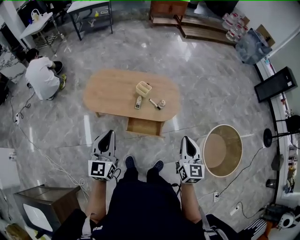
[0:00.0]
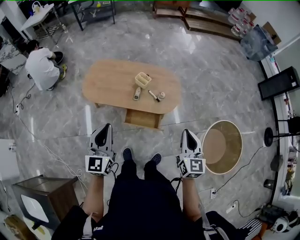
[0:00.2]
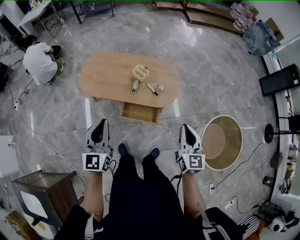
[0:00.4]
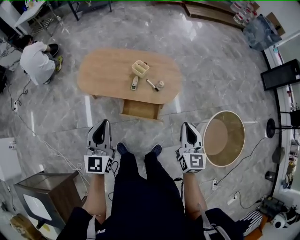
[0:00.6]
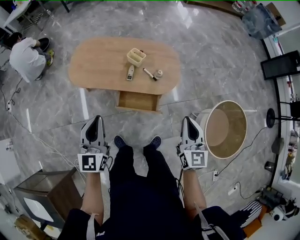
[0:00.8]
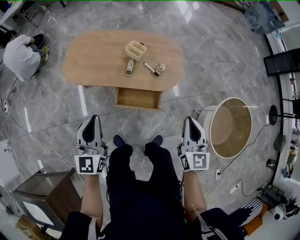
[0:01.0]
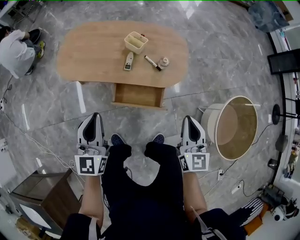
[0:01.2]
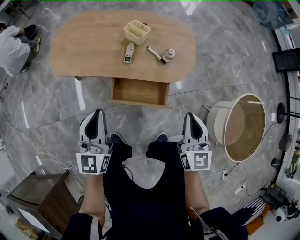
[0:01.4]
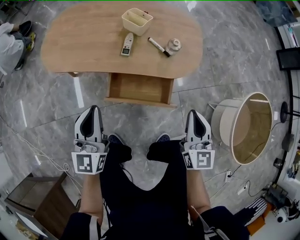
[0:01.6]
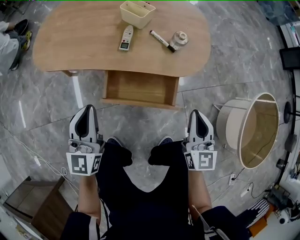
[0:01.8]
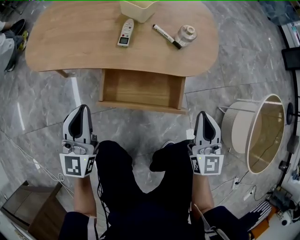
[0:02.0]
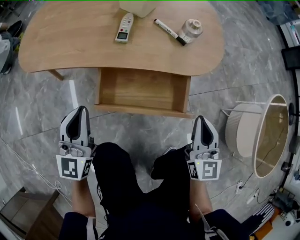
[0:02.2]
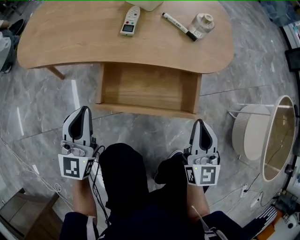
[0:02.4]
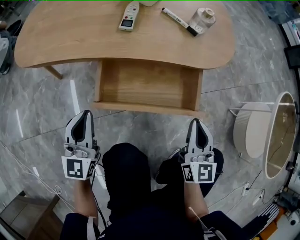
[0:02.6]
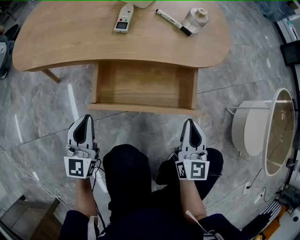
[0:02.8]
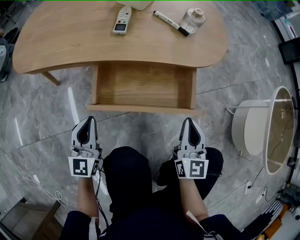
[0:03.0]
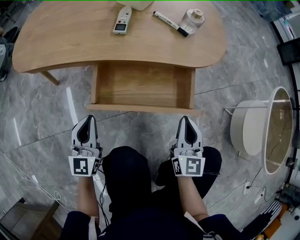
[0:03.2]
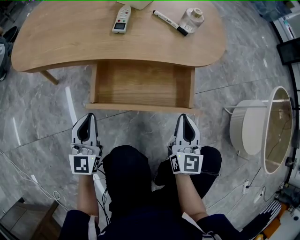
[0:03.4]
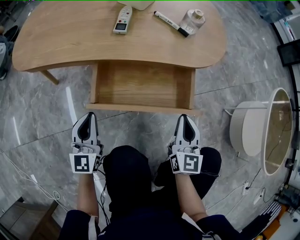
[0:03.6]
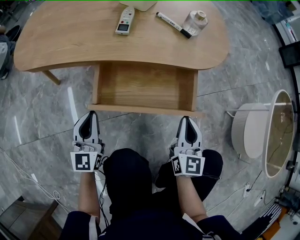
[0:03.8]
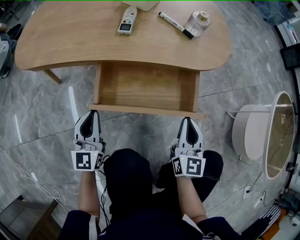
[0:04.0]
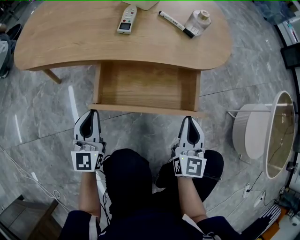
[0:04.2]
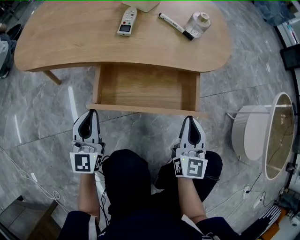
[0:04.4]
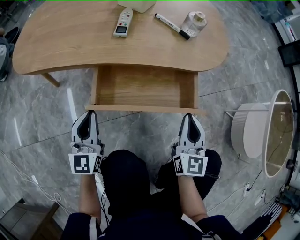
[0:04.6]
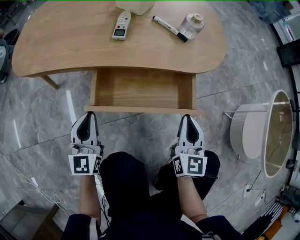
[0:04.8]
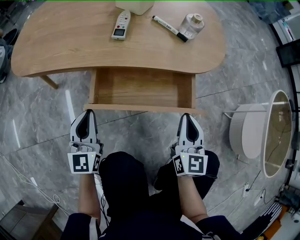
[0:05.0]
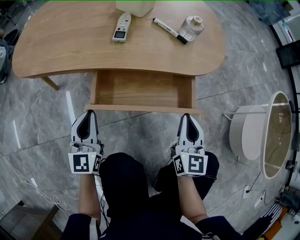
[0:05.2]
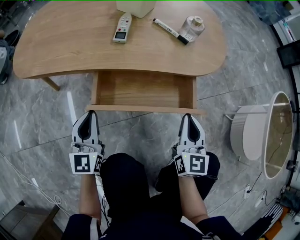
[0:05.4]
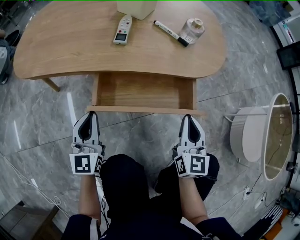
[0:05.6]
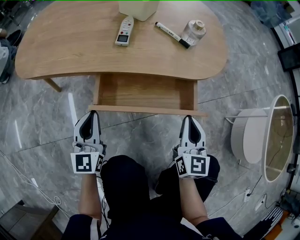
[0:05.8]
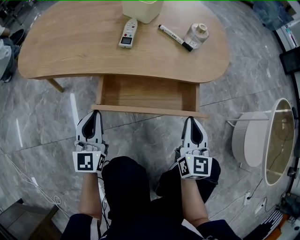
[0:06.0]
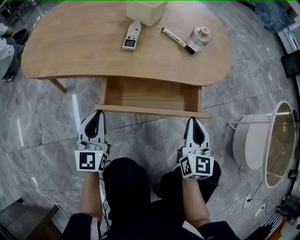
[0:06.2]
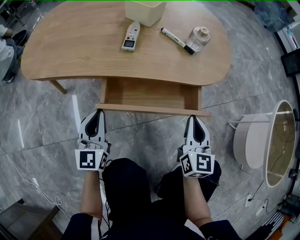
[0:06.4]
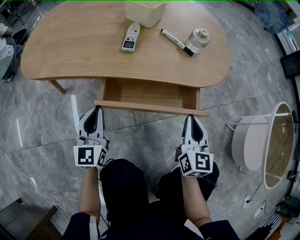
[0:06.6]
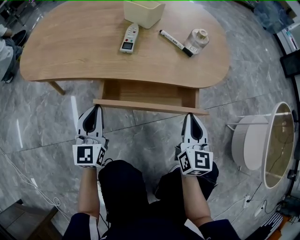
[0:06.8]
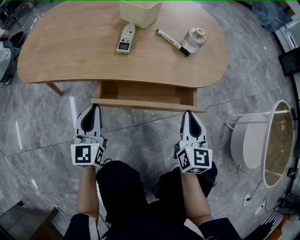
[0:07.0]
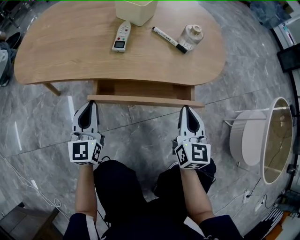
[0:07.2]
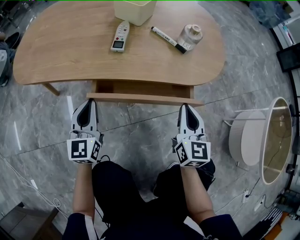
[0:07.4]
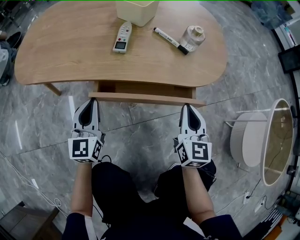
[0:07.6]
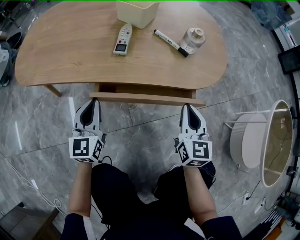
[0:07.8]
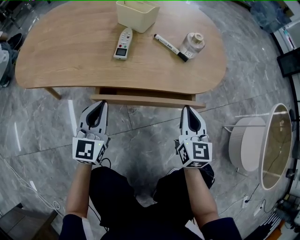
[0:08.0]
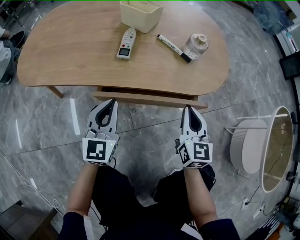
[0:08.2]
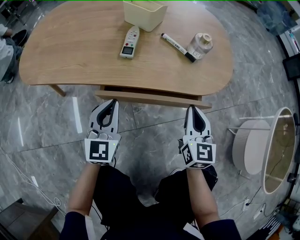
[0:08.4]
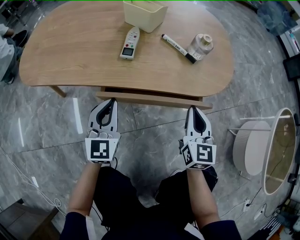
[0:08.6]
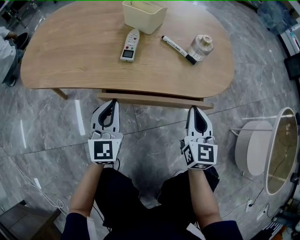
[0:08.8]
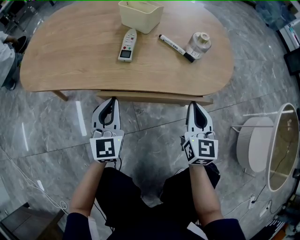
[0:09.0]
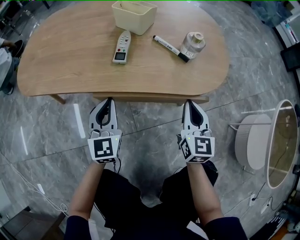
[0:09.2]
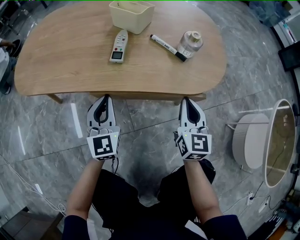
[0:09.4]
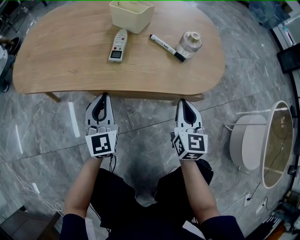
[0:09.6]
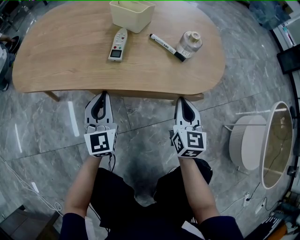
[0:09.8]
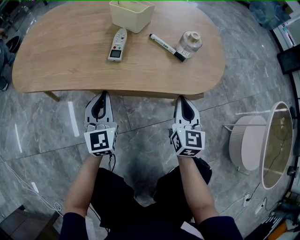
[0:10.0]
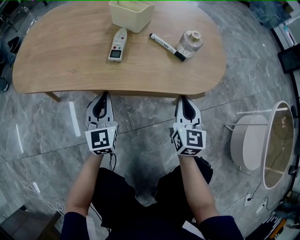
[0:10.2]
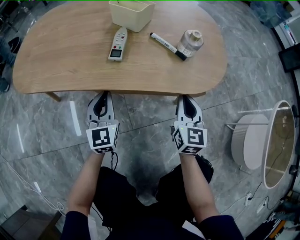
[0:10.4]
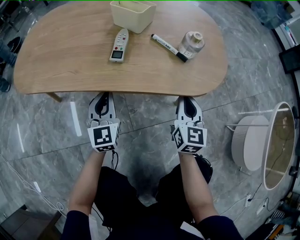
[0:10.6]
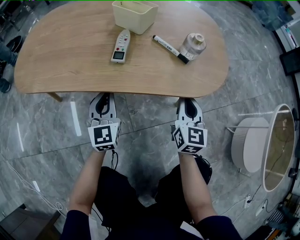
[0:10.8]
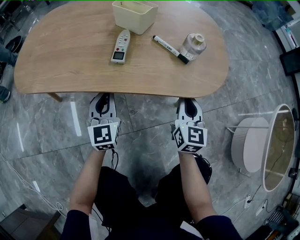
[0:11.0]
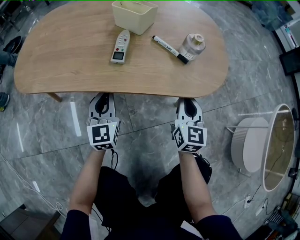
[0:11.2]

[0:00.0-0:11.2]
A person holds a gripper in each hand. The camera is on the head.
0:00.0 to 0:01.6: Both grippers move downward, roughly 40 cm.
0:01.6 to 0:03.2: The grippers both shift downward by roughly 30 cm.
0:03.2 to 0:04.8: There are only small adjustments of the grippers.
0:04.8 to 0:06.4: The grippers make only small movements.
0:06.4 to 0:08.0: The grippers both shift forward by approximately 5 cm.
0:08.0 to 0:09.6: The grippers move only a little.
0:09.6 to 0:11.2: There are only small adjustments of the grippers.

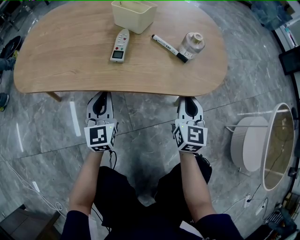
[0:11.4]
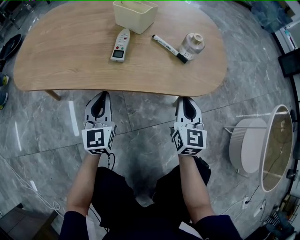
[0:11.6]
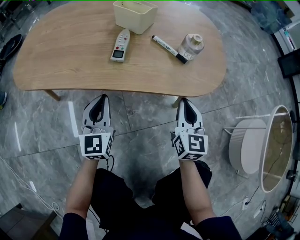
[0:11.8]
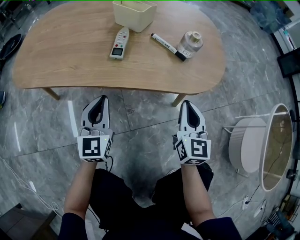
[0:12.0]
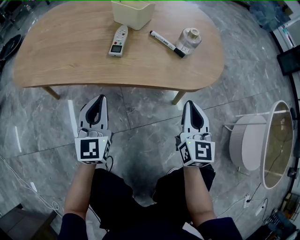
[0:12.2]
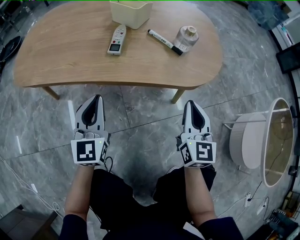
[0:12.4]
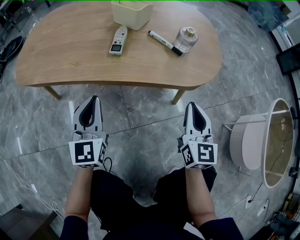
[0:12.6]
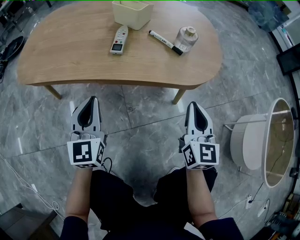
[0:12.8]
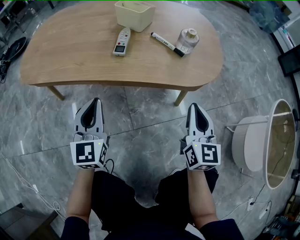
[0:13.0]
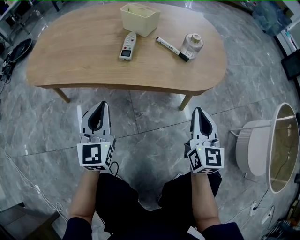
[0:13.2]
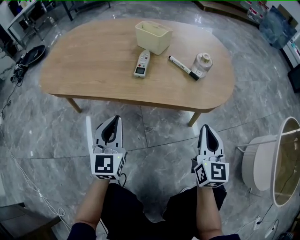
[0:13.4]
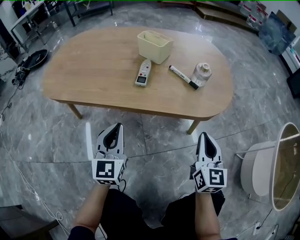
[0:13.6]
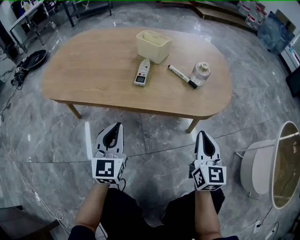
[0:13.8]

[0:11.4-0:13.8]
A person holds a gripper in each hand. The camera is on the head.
0:11.4 to 0:12.6: The grippers both shift backward and upward by about 10 cm.
0:12.6 to 0:13.8: The two grippers keep their place.

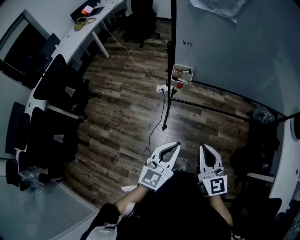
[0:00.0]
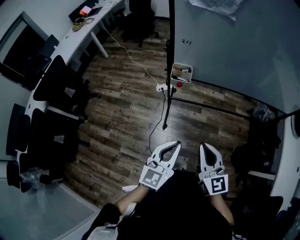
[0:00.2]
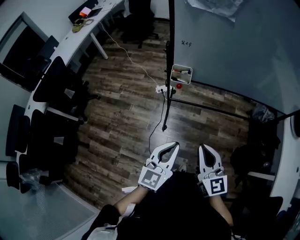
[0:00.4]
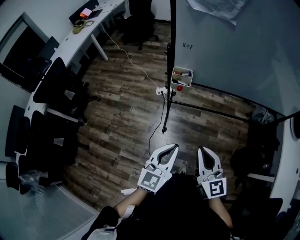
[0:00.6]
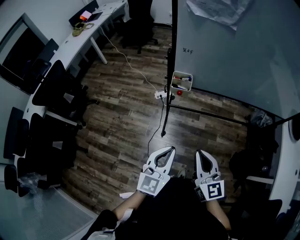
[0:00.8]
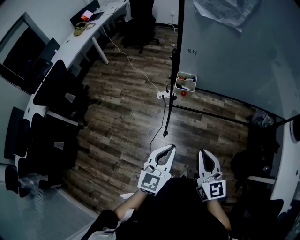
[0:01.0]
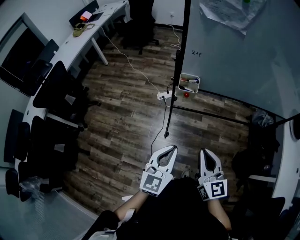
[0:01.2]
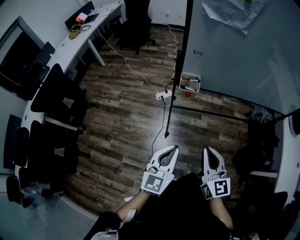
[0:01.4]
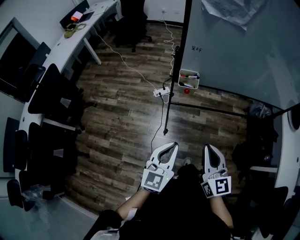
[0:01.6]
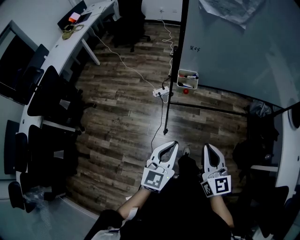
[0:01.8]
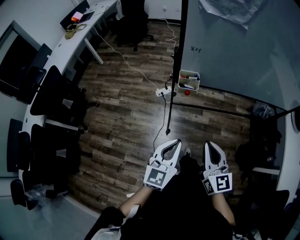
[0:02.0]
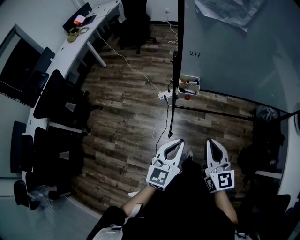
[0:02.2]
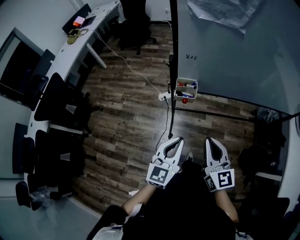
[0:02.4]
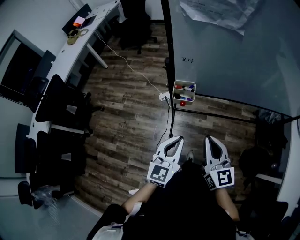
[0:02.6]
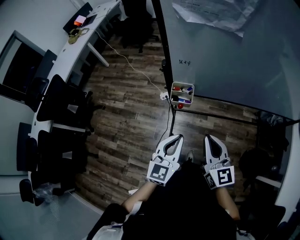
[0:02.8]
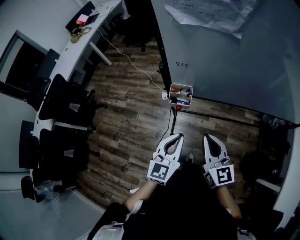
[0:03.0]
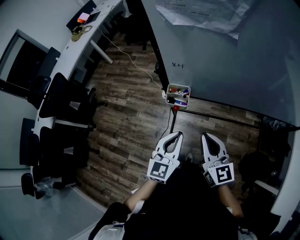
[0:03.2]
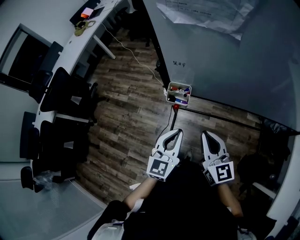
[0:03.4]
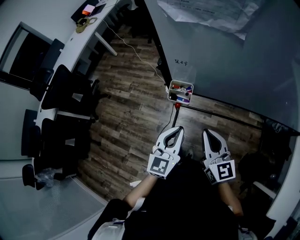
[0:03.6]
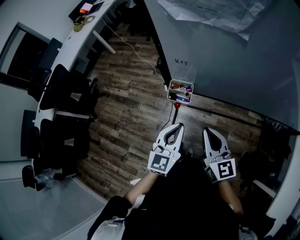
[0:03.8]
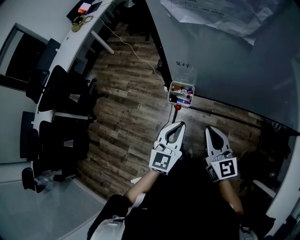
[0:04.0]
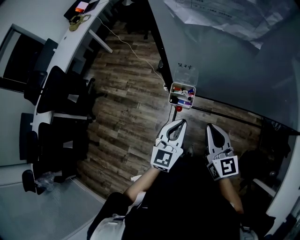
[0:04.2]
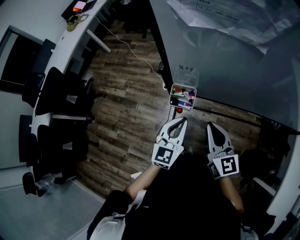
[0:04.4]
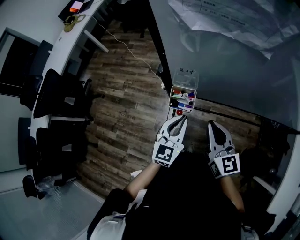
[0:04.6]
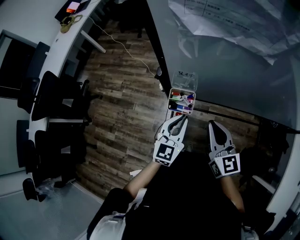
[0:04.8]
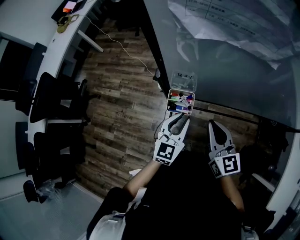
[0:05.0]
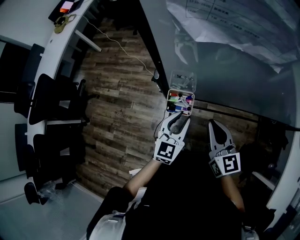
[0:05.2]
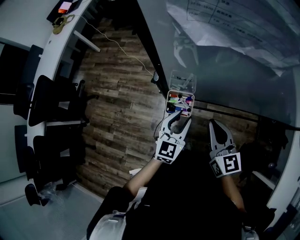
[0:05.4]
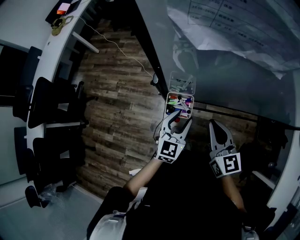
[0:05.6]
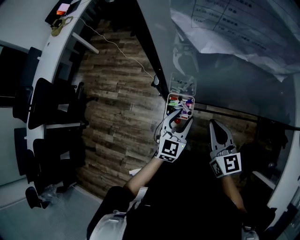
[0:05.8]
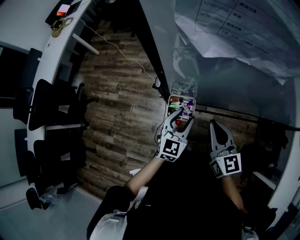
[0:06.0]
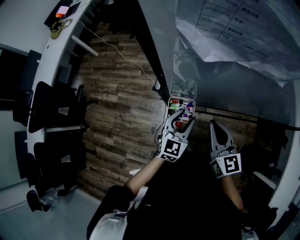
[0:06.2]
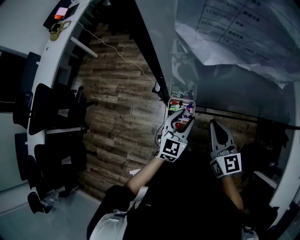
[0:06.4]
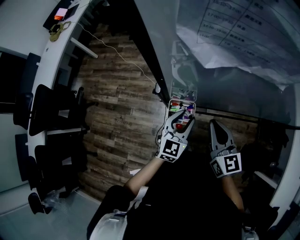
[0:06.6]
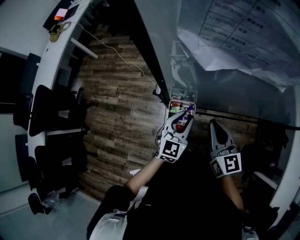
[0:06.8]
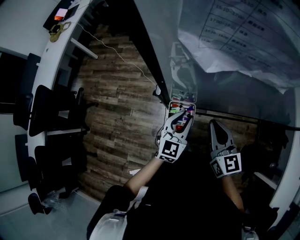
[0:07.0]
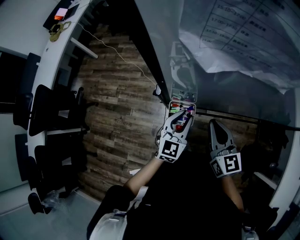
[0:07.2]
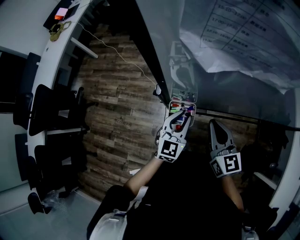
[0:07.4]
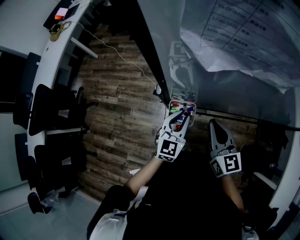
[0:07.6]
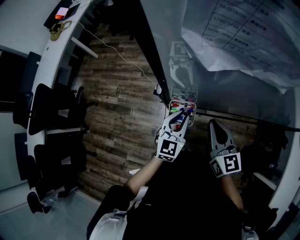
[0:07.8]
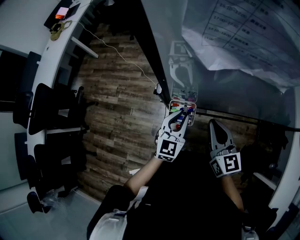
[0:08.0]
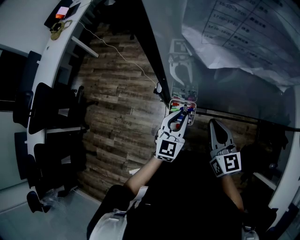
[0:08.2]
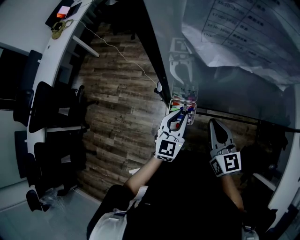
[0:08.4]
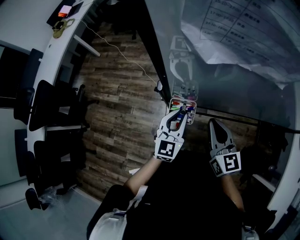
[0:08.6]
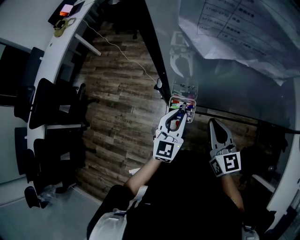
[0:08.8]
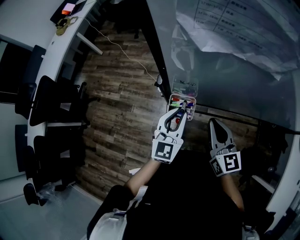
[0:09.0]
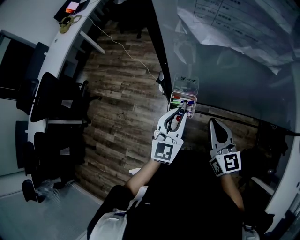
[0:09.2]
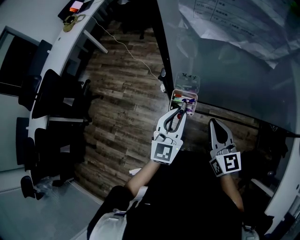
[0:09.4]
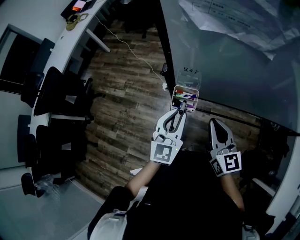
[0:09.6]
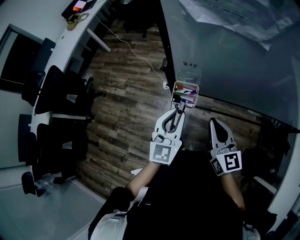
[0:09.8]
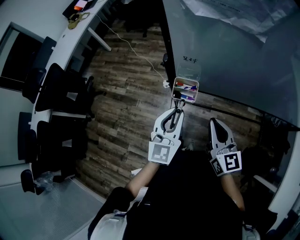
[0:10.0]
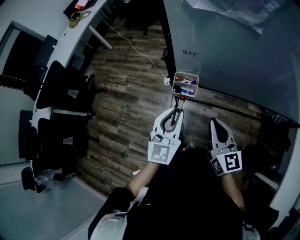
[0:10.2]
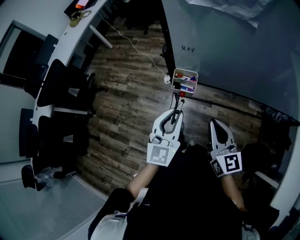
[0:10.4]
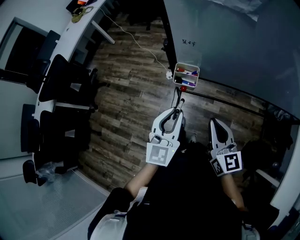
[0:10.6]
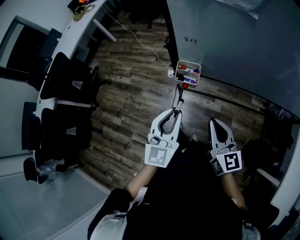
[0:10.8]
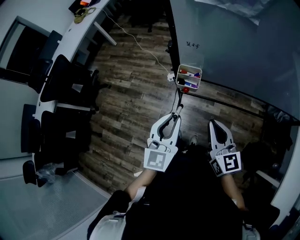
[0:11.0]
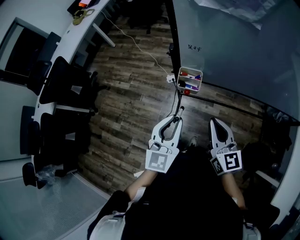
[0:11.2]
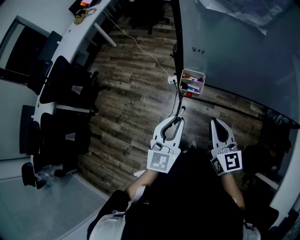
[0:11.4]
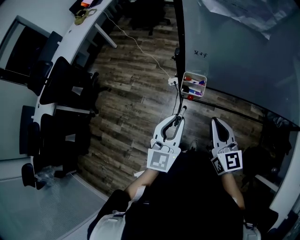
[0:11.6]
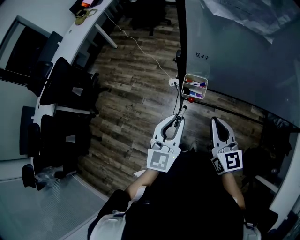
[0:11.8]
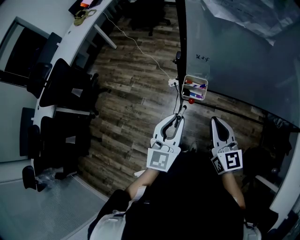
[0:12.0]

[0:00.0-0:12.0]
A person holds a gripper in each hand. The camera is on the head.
0:00.0 to 0:01.6: The left gripper heads to the left, covering roughly 10 cm, while the right gripper shifts roughly 5 cm to the left.
0:01.6 to 0:03.0: The left gripper heads forward and to the right, covering roughly 20 cm; the right gripper moves forward, about 15 cm.
0:03.0 to 0:04.4: Both grippers travel together forward, roughly 10 cm.
0:04.4 to 0:06.0: The left gripper travels forward and downward by about 10 cm, and opens up. Meanwhile the right gripper moves forward, some 5 cm.
0:06.0 to 0:07.6: The left gripper closes its fingers.
0:07.6 to 0:09.0: The left gripper is displaced upward by about 5 cm.
0:09.0 to 0:10.4: The two grippers go roughly 15 cm backward.
0:10.4 to 0:12.0: The right gripper moves approximately 5 cm.
